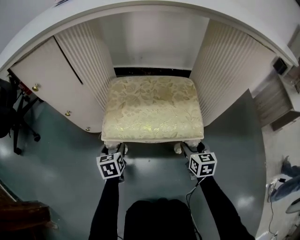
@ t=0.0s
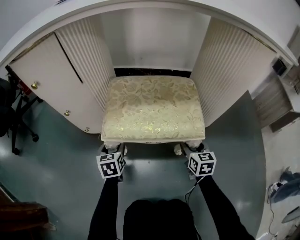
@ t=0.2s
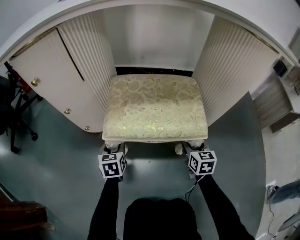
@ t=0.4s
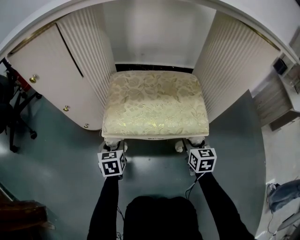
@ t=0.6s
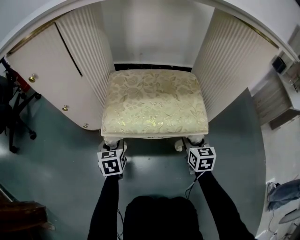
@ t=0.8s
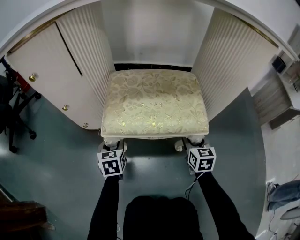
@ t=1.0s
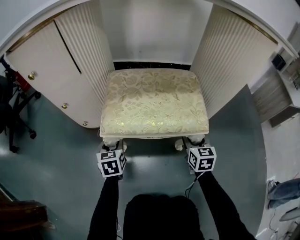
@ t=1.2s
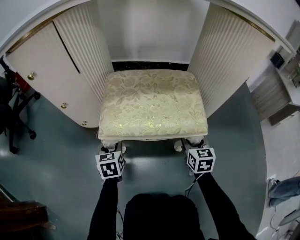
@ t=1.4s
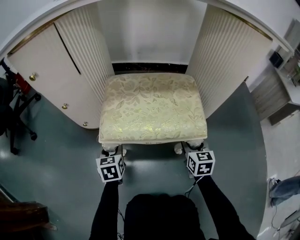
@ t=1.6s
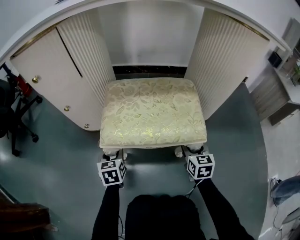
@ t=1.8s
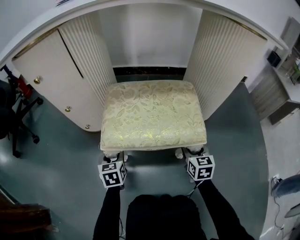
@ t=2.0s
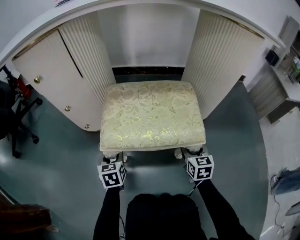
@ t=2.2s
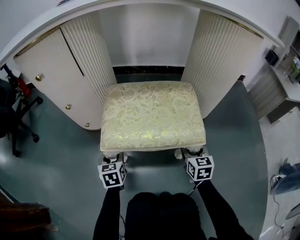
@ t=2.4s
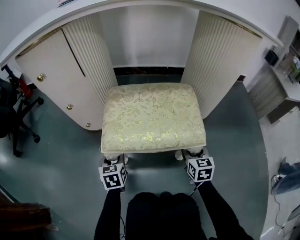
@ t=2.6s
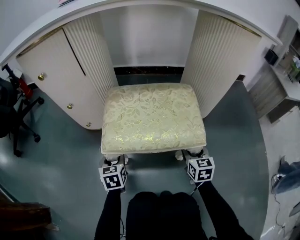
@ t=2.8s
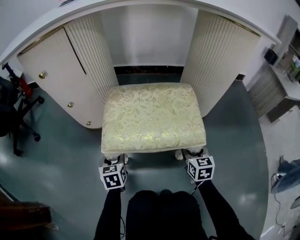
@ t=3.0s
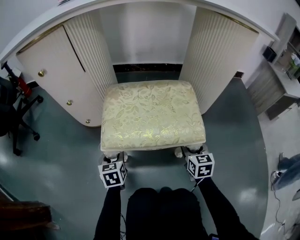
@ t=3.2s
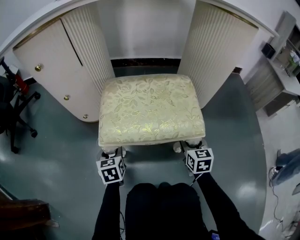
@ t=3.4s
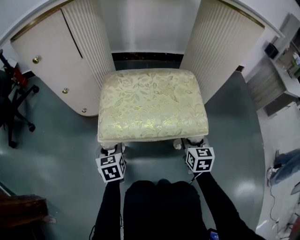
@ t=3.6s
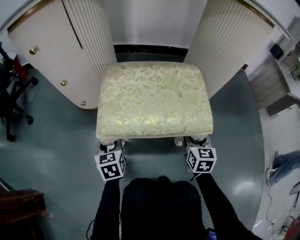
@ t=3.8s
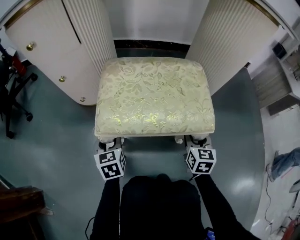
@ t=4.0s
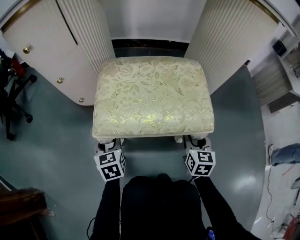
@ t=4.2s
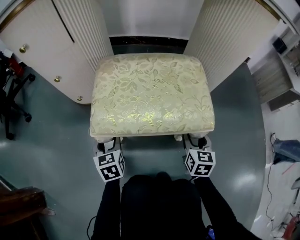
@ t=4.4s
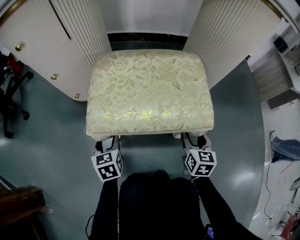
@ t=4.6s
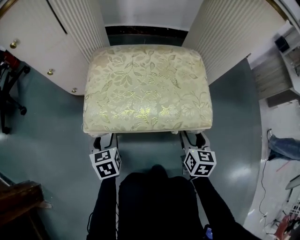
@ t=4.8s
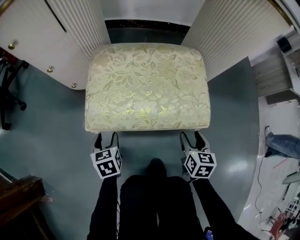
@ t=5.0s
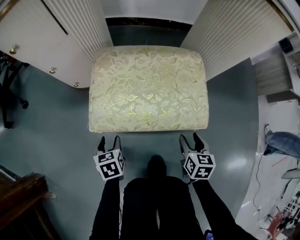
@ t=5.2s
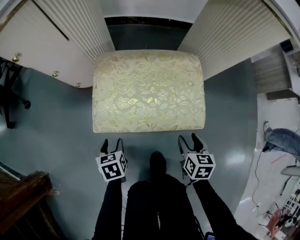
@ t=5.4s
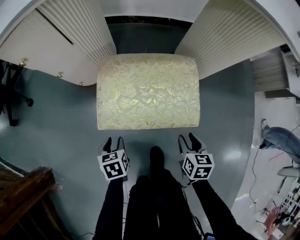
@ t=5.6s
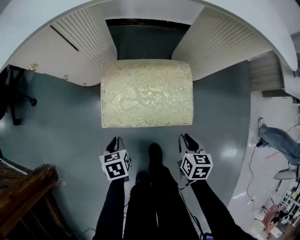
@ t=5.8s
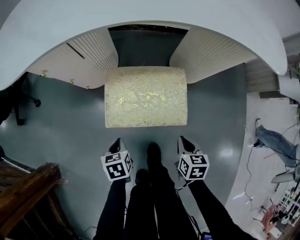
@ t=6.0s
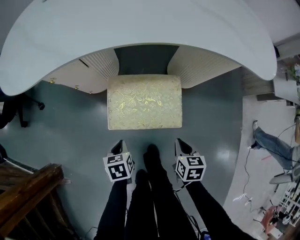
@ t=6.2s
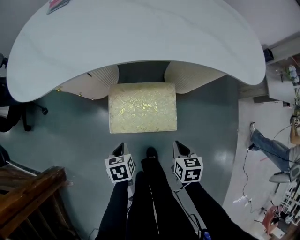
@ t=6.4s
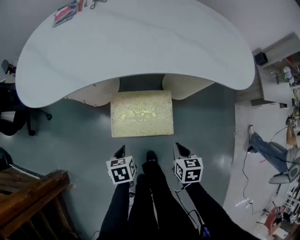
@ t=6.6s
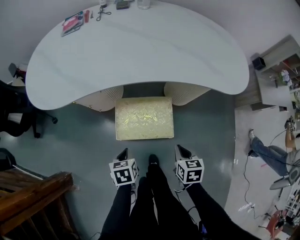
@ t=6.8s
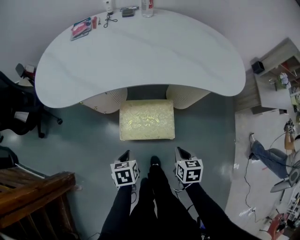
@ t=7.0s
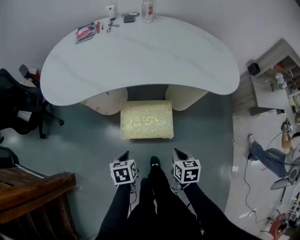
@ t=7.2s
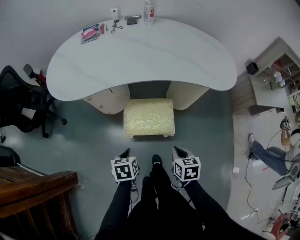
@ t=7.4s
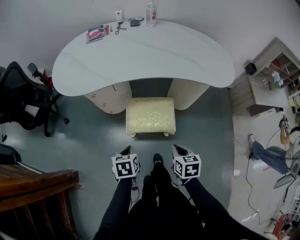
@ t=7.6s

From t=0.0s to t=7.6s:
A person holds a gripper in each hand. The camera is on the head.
From t=0.0s to t=1.6s: The left gripper closes its fingers.
From t=1.6s to t=4.6s: The grippers make only small movements.
From t=4.6s to t=6.0s: Both grippers travel together upward, about 20 cm. The left gripper turns by some 20 degrees, and closes its fingers. Meanwhile the right gripper rotates approximately 20 degrees, and closes its fingers.
From t=6.0s to t=7.6s: Both grippers move upward, some 30 cm.

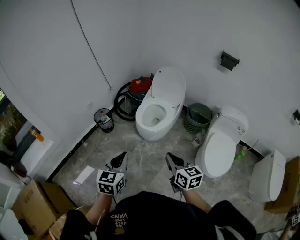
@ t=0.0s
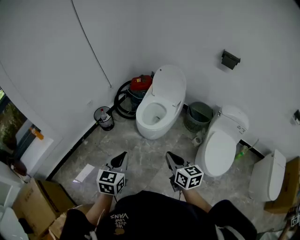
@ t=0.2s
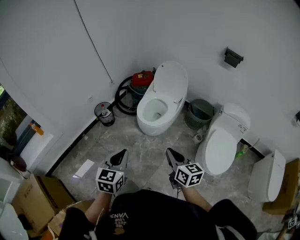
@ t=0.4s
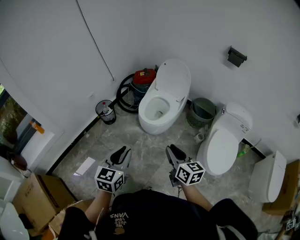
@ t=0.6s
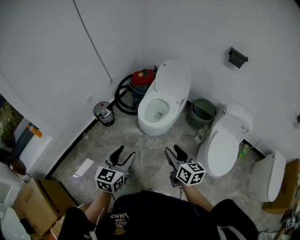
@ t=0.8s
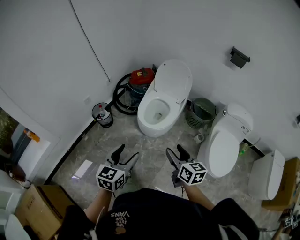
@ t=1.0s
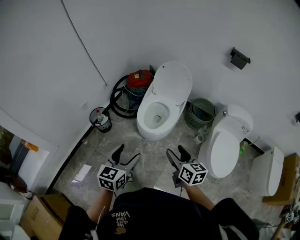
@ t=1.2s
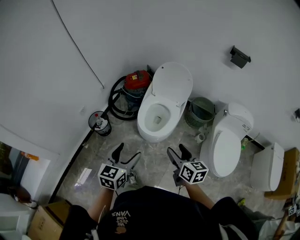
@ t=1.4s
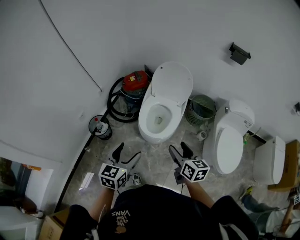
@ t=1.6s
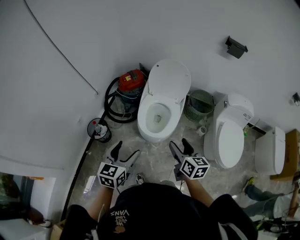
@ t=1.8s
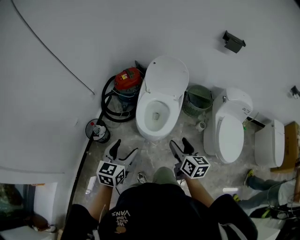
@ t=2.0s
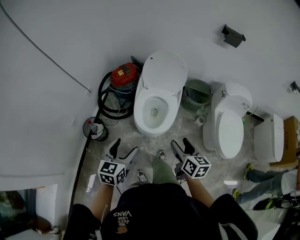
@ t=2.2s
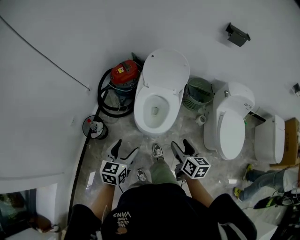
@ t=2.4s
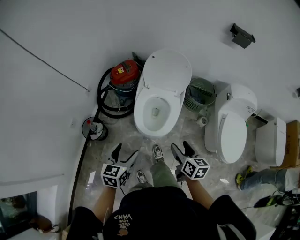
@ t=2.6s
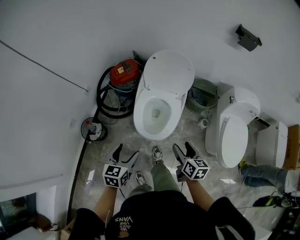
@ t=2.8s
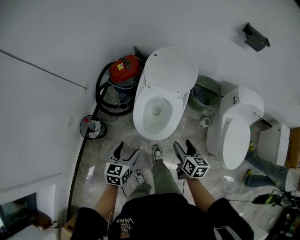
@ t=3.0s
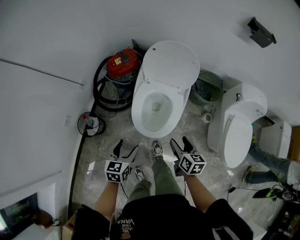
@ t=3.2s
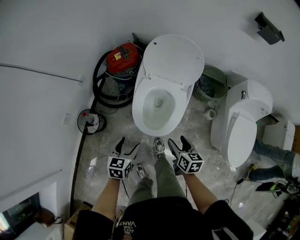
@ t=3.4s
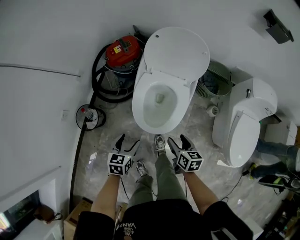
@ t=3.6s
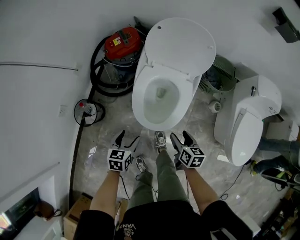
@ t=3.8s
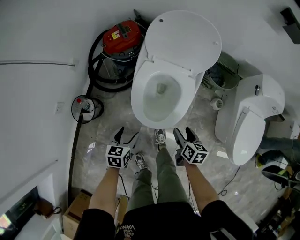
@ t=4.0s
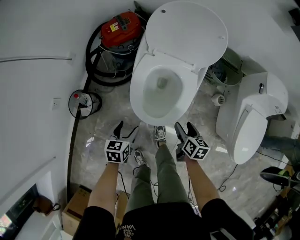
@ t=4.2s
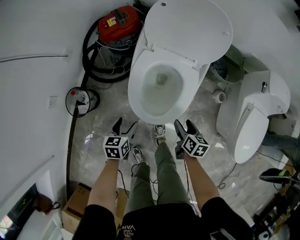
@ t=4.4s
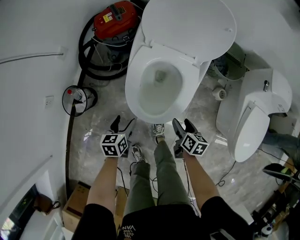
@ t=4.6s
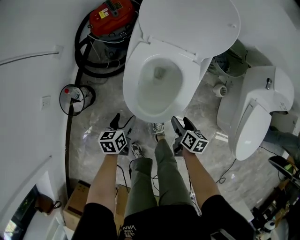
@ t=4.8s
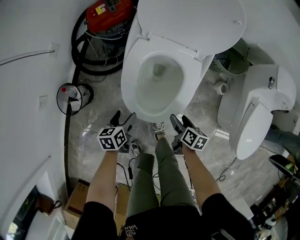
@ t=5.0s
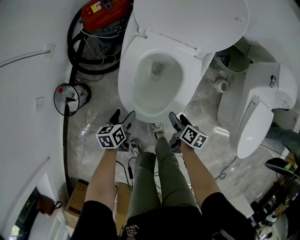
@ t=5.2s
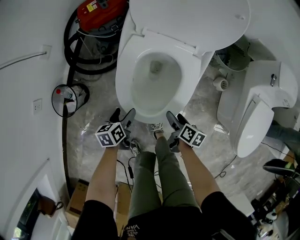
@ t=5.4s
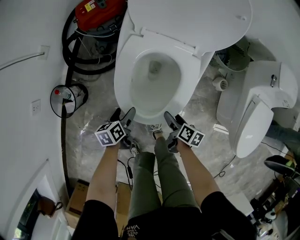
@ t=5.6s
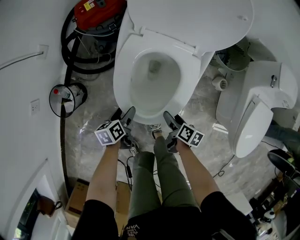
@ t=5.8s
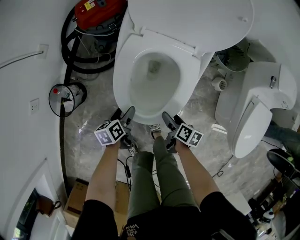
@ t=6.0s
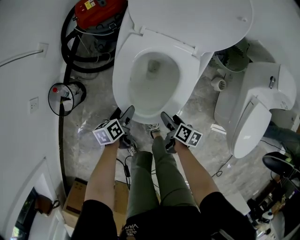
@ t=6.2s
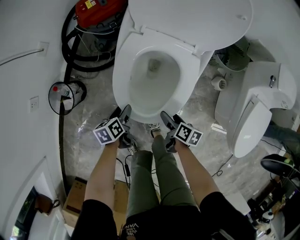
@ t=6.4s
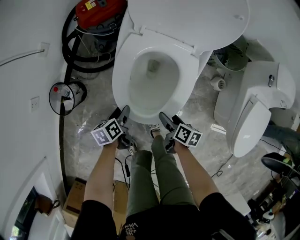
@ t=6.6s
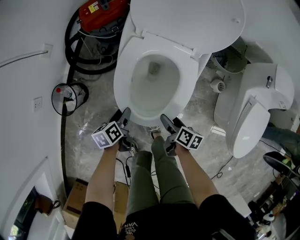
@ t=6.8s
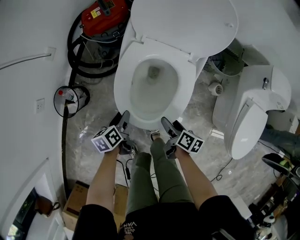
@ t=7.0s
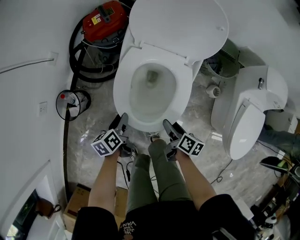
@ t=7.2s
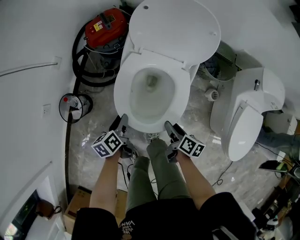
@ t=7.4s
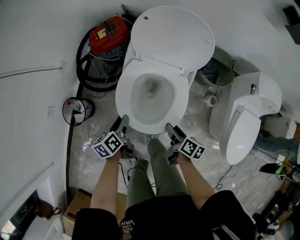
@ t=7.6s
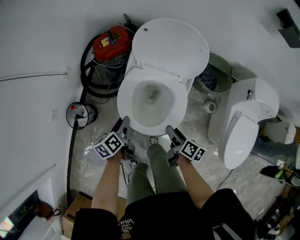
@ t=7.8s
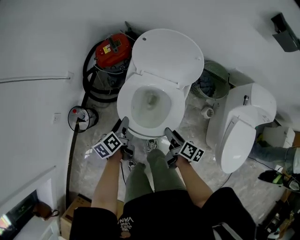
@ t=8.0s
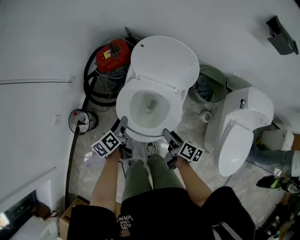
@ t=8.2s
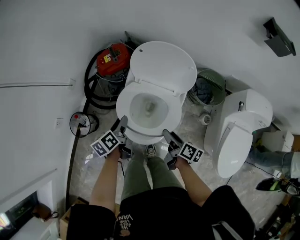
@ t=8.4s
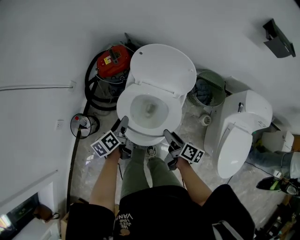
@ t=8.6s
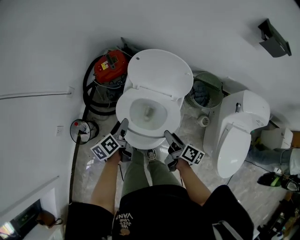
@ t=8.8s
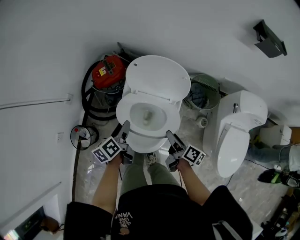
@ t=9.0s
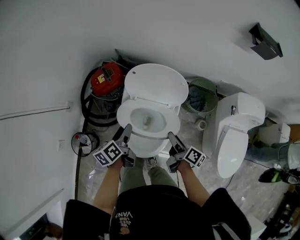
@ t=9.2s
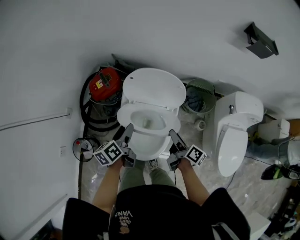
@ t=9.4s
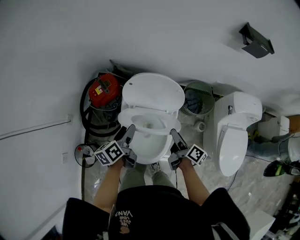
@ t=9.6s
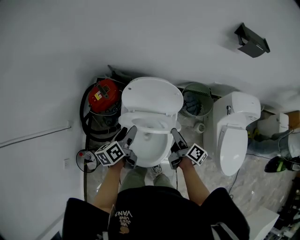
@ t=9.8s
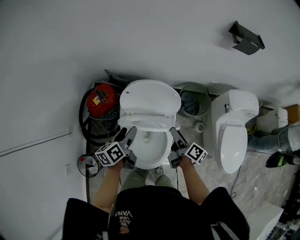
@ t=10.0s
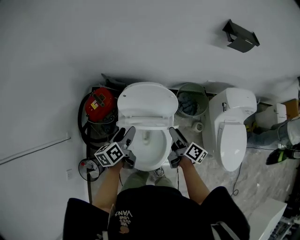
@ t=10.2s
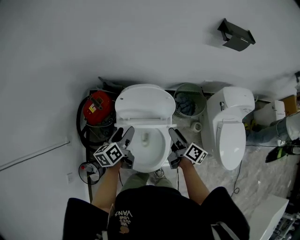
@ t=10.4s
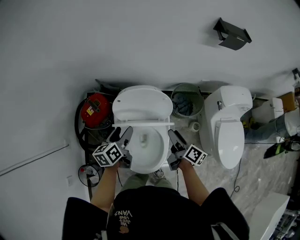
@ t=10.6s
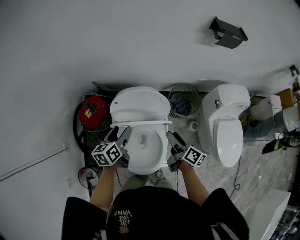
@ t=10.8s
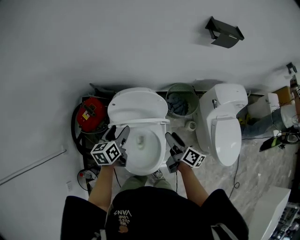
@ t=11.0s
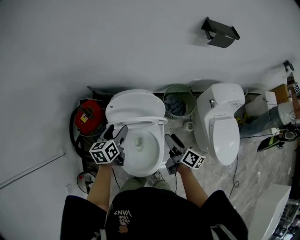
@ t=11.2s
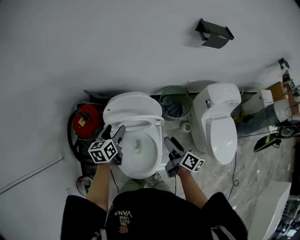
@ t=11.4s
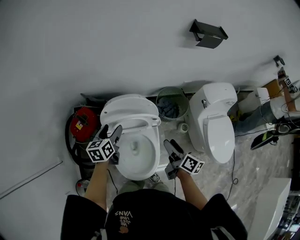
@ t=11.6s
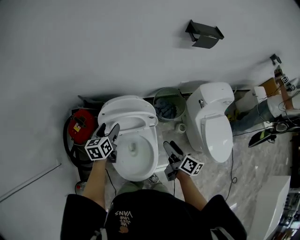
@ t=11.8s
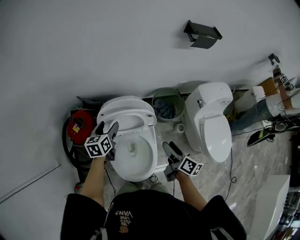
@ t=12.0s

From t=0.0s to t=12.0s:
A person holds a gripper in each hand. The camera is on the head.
From t=0.0s to t=1.6s: Both grippers travel together forward, roughly 25 cm. The left gripper opens up. The right gripper opens up.
From t=1.6s to t=3.0s: Both grippers travel together forward and downward, roughly 20 cm.
From t=3.0s to t=4.4s: Both grippers move downward, roughly 25 cm. The left gripper swivels about 20 degrees.
From t=4.4s to t=6.0s: Both grippers travel together downward, about 10 cm. The left gripper changes its angle by roughly 30 degrees, while the right gripper rotates some 20 degrees.
From t=6.0s to t=7.6s: Both grippers travel together upward, about 15 cm. The left gripper closes its fingers.
From t=7.6s to t=9.0s: The grippers both shift upward and forward by roughly 15 cm.
From t=9.0s to t=10.4s: Both grippers travel together forward and upward, about 15 cm. The right gripper turns by roughly 20 degrees, while the left gripper swivels approximately 20 degrees.
From t=10.4s to t=12.0s: The left gripper moves forward, some 10 cm, and swivels approximately 30 degrees. Meanwhile the right gripper is displaced backward by some 5 cm.

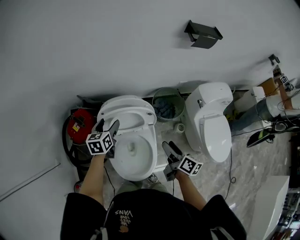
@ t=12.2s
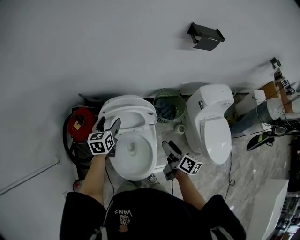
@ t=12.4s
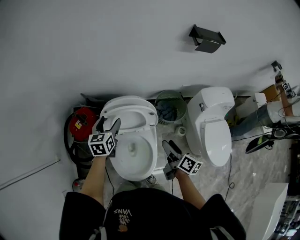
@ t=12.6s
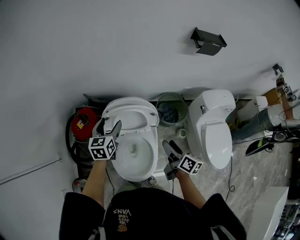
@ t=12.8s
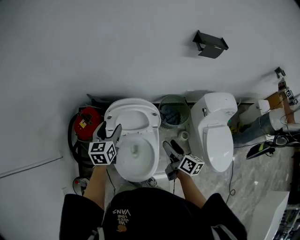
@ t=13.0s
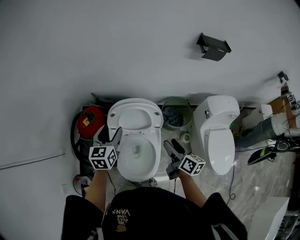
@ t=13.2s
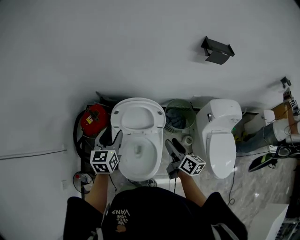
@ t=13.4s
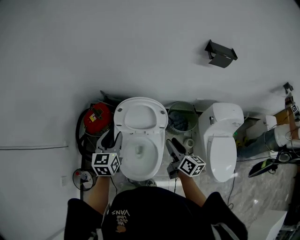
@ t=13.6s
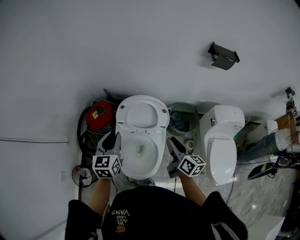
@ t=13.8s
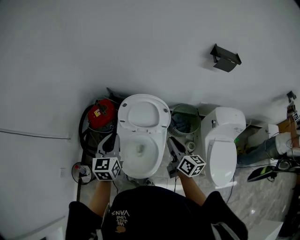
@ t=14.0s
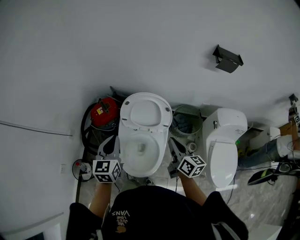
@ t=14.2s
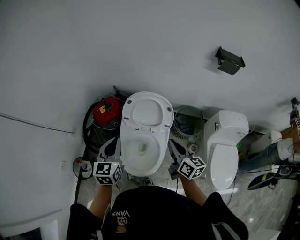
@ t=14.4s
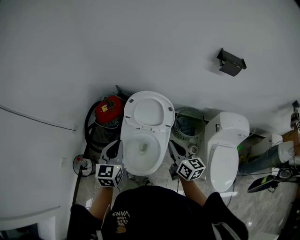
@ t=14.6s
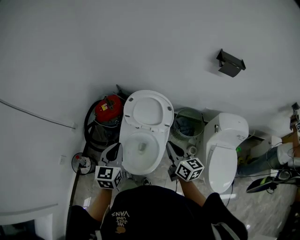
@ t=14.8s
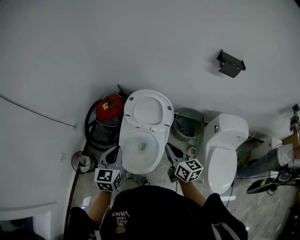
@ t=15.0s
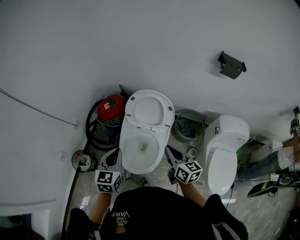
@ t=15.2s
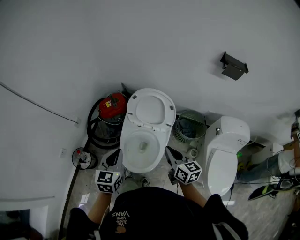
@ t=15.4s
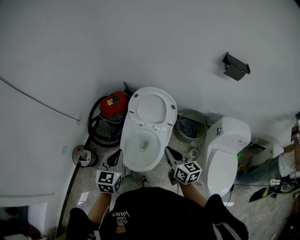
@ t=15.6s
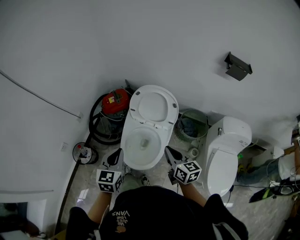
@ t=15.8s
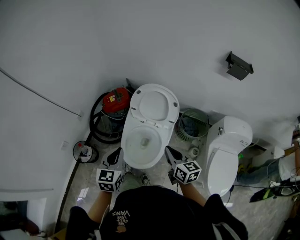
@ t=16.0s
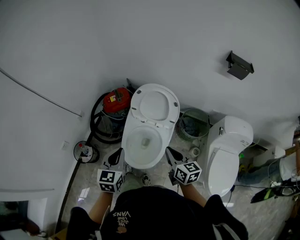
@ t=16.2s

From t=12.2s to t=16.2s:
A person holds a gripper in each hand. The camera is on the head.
From t=12.2s to t=13.6s: The left gripper moves backward and upward, about 20 cm, changes its angle by some 20 degrees, and closes its fingers. Meanwhile the right gripper travels upward by approximately 5 cm, and turns by about 20 degrees.
From t=13.6s to t=14.8s: The left gripper moves backward, approximately 15 cm, and closes, while the right gripper shifts some 5 cm backward, turns by roughly 20 degrees, and closes.
From t=14.8s to t=16.2s: Both grippers travel together backward, some 5 cm.
